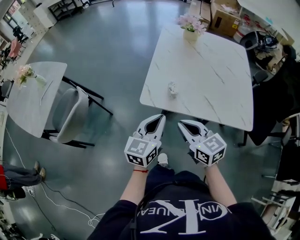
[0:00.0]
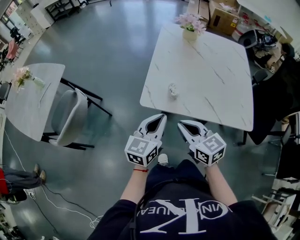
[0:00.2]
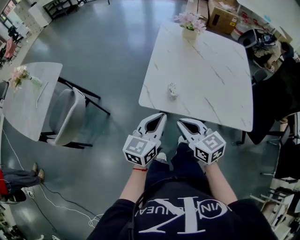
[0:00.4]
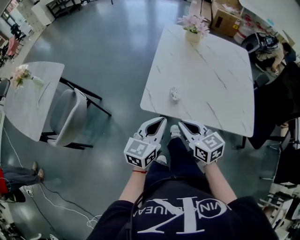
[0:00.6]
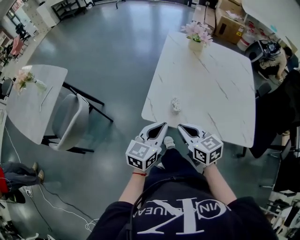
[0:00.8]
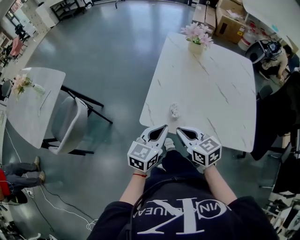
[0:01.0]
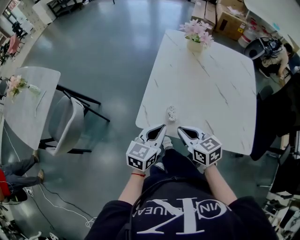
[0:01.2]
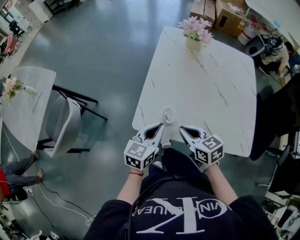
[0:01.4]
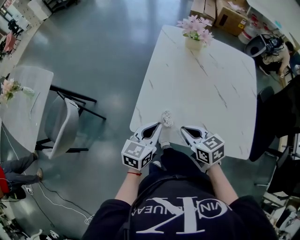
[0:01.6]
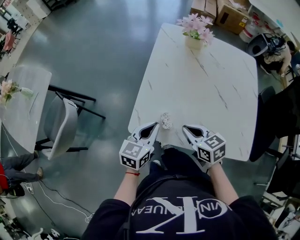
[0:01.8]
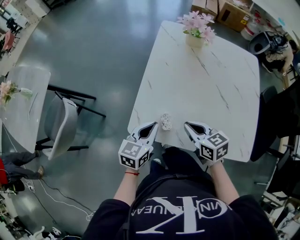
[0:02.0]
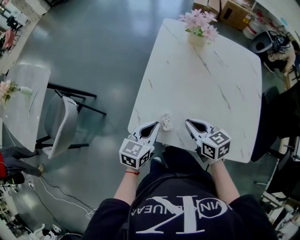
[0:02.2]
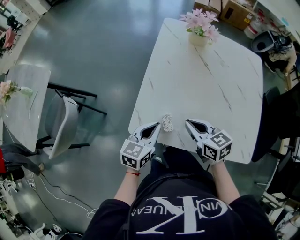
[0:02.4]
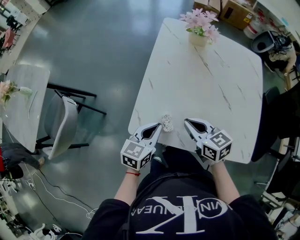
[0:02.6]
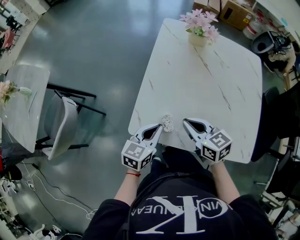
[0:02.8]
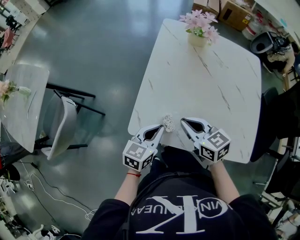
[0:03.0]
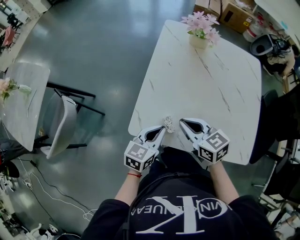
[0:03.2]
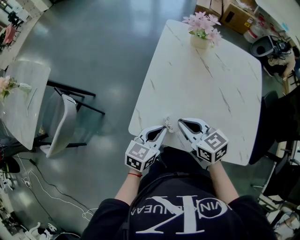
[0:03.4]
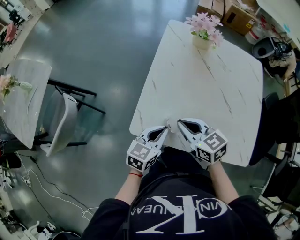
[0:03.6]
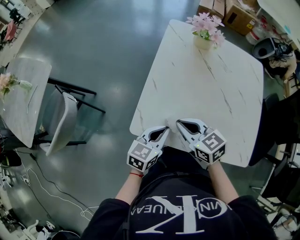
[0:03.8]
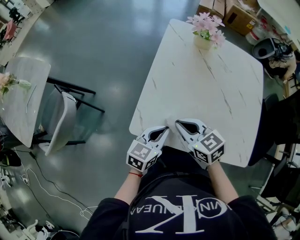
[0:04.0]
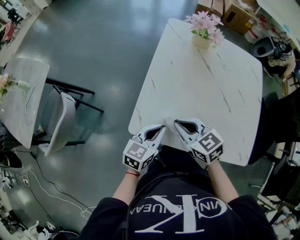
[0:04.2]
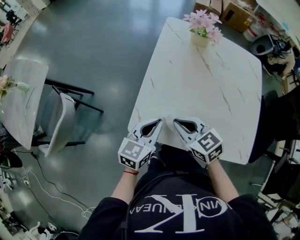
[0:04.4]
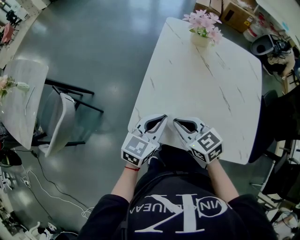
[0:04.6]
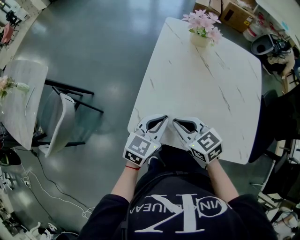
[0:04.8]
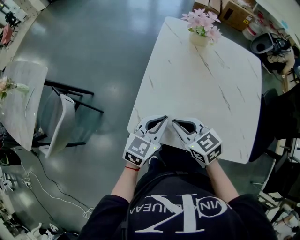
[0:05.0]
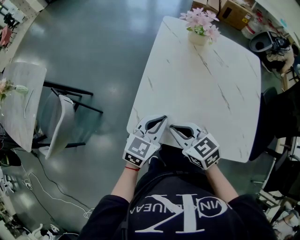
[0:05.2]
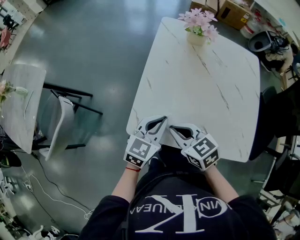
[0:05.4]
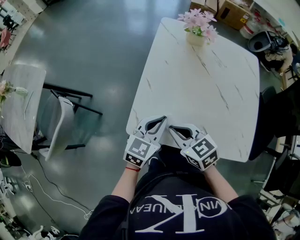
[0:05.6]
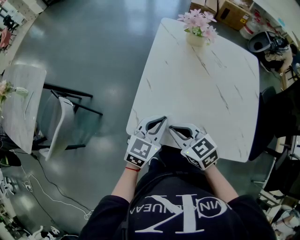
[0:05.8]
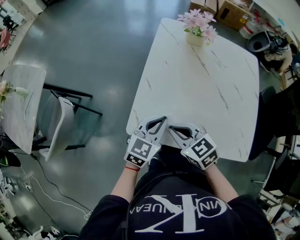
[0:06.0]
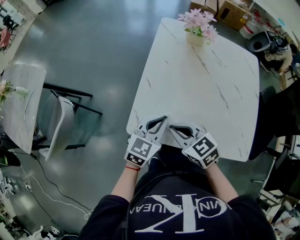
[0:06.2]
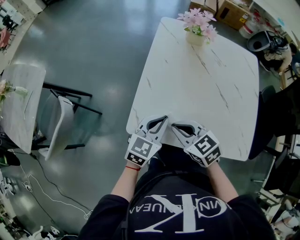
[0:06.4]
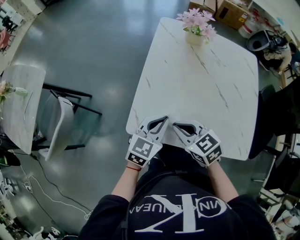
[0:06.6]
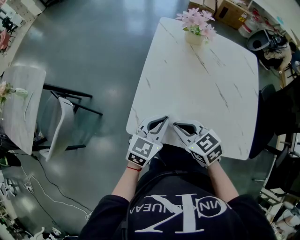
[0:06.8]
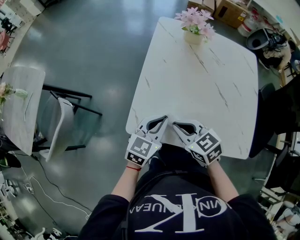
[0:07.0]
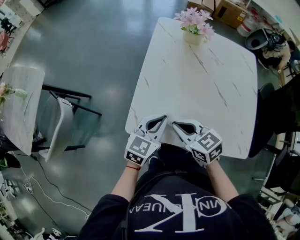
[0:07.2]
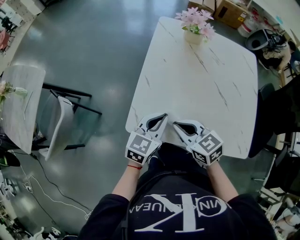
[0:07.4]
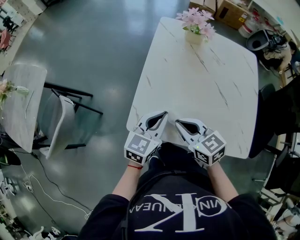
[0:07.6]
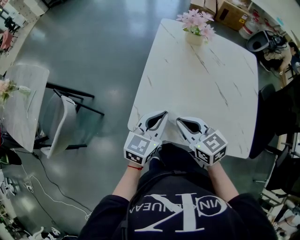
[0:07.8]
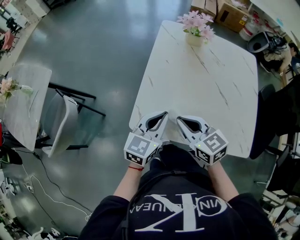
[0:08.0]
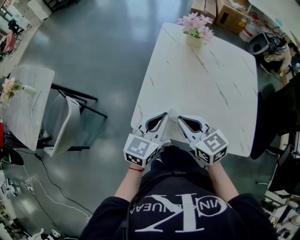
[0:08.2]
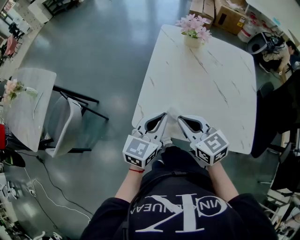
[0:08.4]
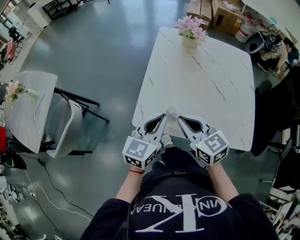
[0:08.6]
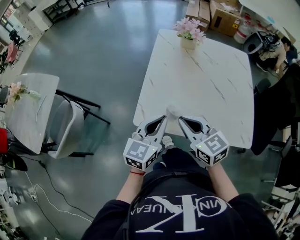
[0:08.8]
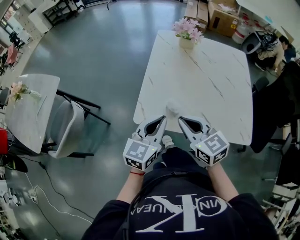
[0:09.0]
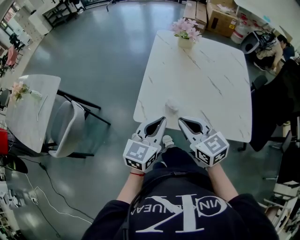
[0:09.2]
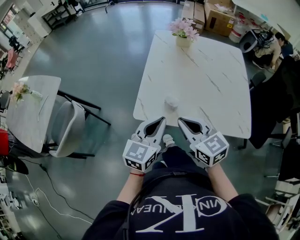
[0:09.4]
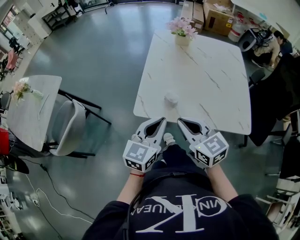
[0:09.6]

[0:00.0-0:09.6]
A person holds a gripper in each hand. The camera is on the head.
0:00.0 to 0:01.6: The left gripper heads forward and downward, covering approximately 15 cm. The right gripper moves forward, downward and to the right, some 20 cm.
0:01.6 to 0:03.2: The right gripper goes roughly 5 cm forward.
0:03.2 to 0:04.8: The left gripper shifts by some 5 cm.
0:04.8 to 0:08.0: The grippers move only a little.
0:08.0 to 0:09.6: The right gripper moves backward and upward, approximately 15 cm. Meanwhile the left gripper travels backward by some 15 cm.

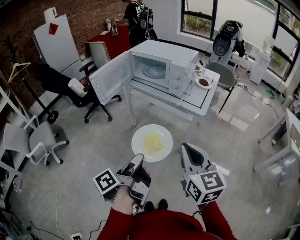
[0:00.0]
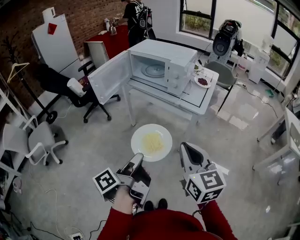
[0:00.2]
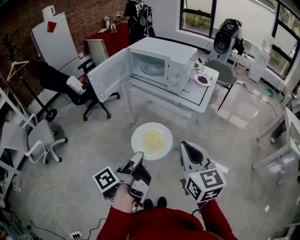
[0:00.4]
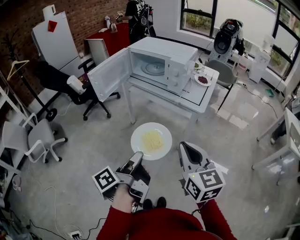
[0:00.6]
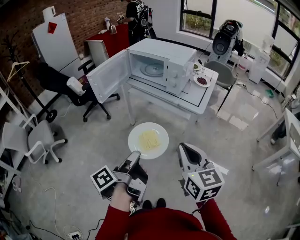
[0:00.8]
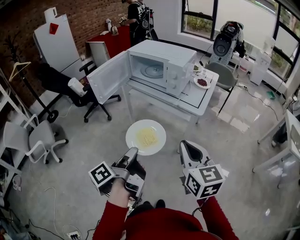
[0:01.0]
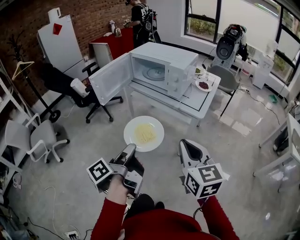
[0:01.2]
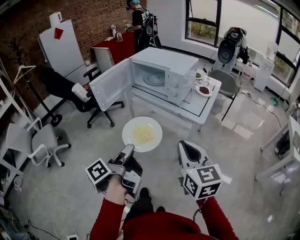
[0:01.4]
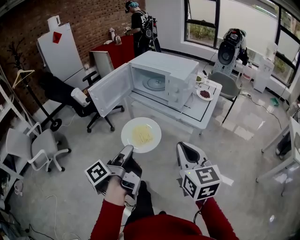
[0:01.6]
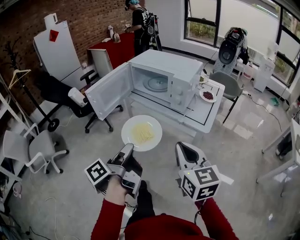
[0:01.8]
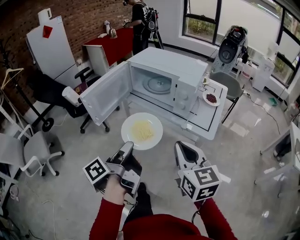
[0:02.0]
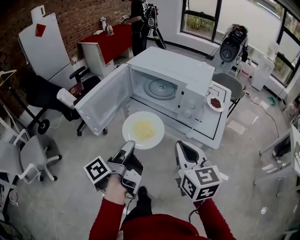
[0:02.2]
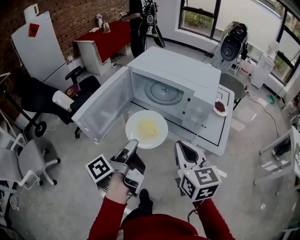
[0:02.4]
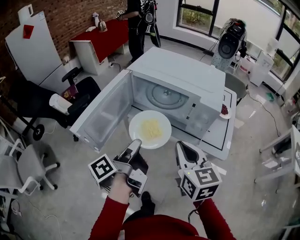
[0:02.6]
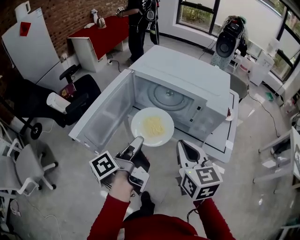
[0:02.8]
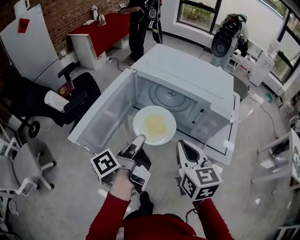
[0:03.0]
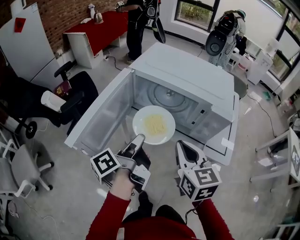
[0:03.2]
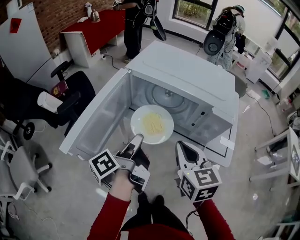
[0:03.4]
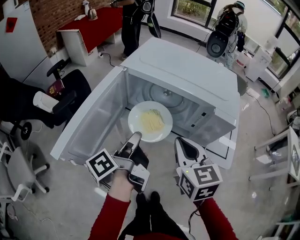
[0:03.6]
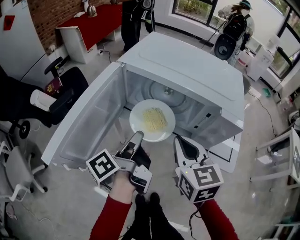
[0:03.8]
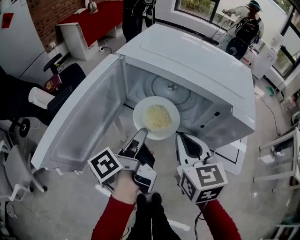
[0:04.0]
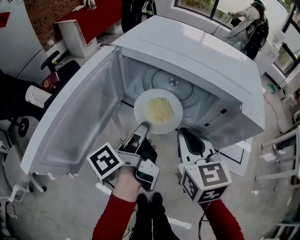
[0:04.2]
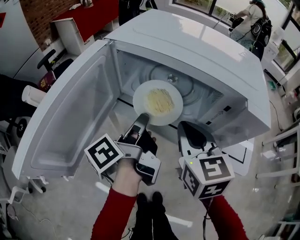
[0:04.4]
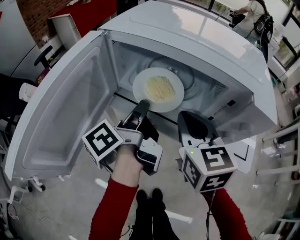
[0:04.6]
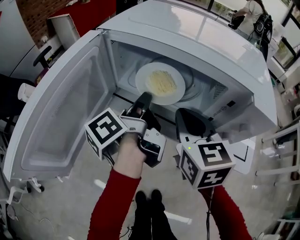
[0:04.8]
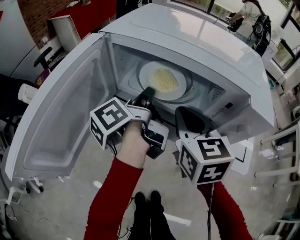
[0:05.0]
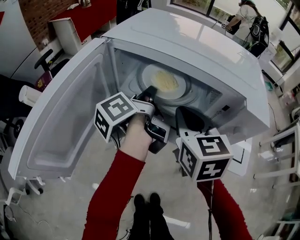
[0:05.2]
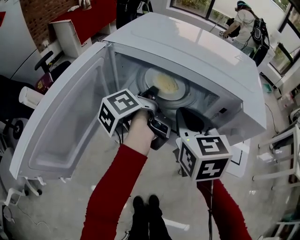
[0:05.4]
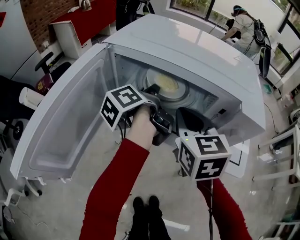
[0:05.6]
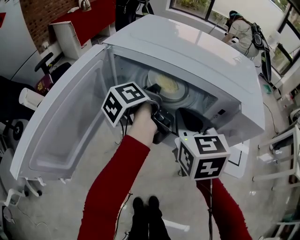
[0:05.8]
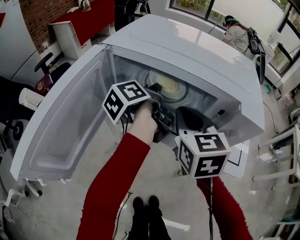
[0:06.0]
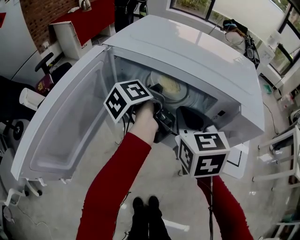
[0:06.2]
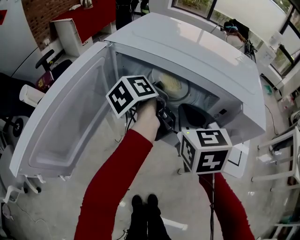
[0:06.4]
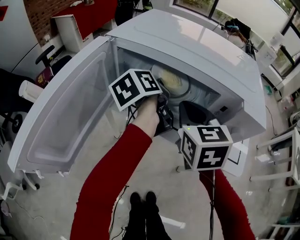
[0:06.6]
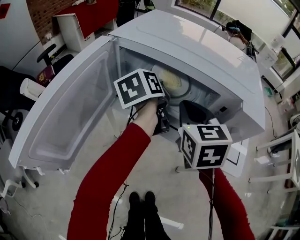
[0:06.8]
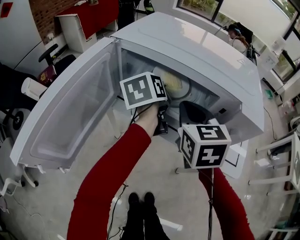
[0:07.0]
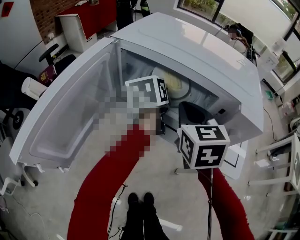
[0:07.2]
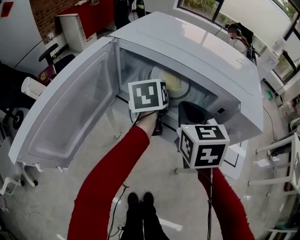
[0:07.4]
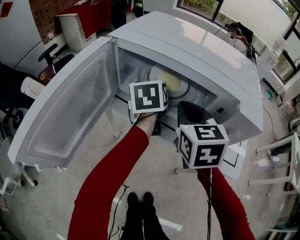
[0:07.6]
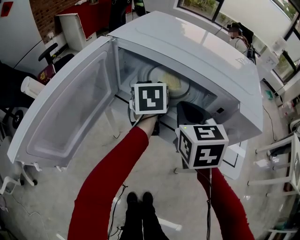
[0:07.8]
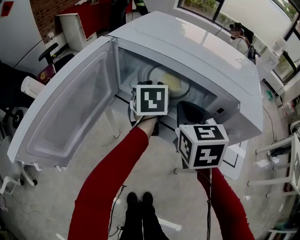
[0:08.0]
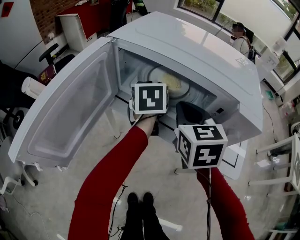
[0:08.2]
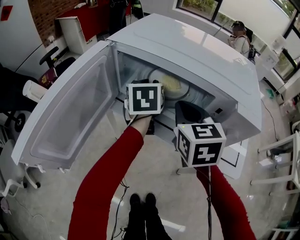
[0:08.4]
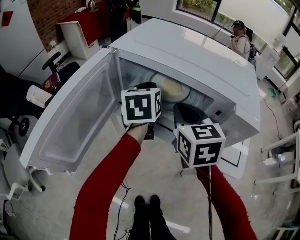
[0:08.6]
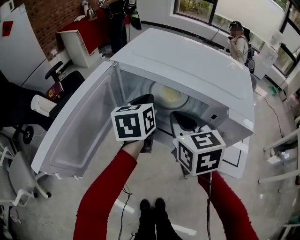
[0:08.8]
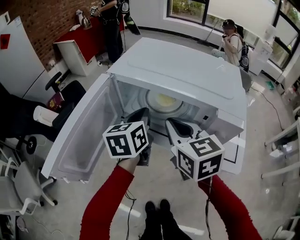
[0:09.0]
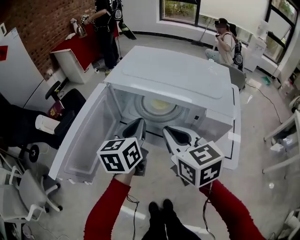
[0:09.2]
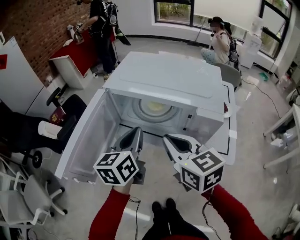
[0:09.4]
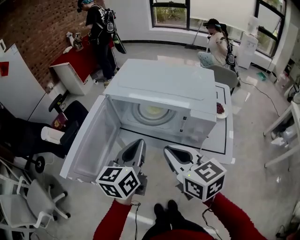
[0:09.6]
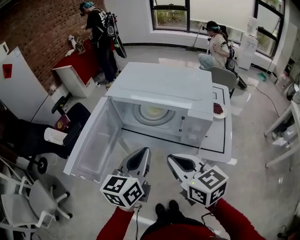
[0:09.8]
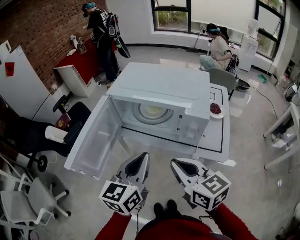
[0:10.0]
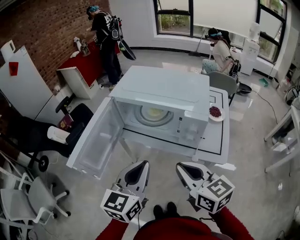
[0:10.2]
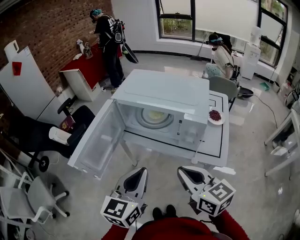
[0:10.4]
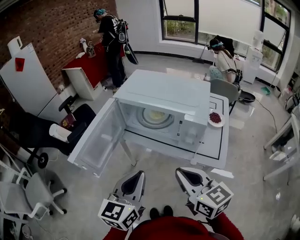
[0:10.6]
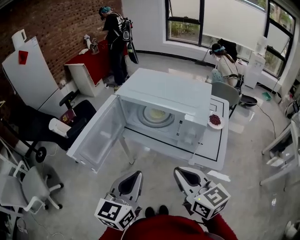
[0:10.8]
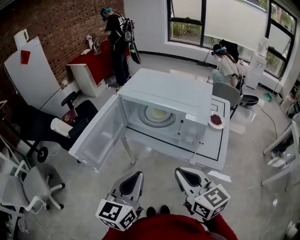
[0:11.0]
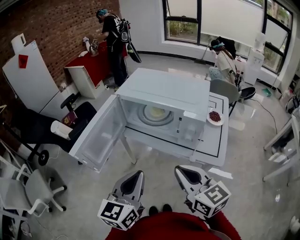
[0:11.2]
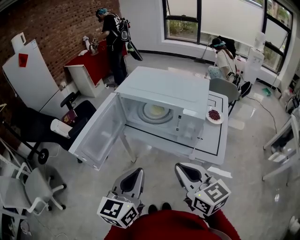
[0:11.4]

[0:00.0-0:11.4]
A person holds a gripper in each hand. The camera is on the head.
0:00.0 to 0:01.4: The left gripper goes some 5 cm forward.
0:01.4 to 0:02.8: The two grippers go some 30 cm forward.
0:02.8 to 0:04.2: The grippers both shift forward and downward by roughly 15 cm.
0:04.2 to 0:05.6: The right gripper shifts roughly 5 cm forward; the left gripper shifts roughly 15 cm forward.
0:05.6 to 0:07.2: The left gripper rolls clockwise, seen from behind, by some 40 degrees.
0:07.2 to 0:08.6: There are only small adjustments of the grippers.
0:08.6 to 0:10.0: The two grippers go approximately 25 cm backward. The left gripper turns by roughly 30 degrees. The right gripper changes its angle by approximately 20 degrees.
0:10.0 to 0:11.4: The right gripper changes place by about 5 cm. The left gripper shifts some 10 cm backward.

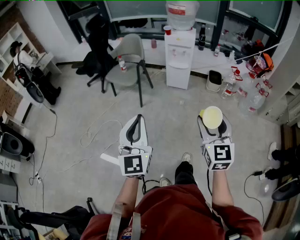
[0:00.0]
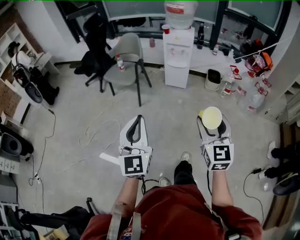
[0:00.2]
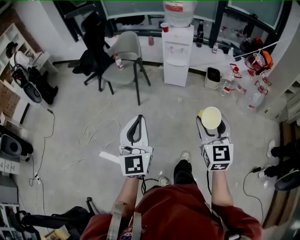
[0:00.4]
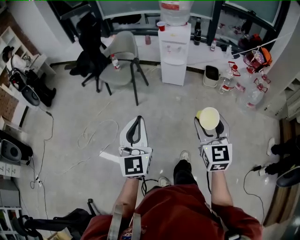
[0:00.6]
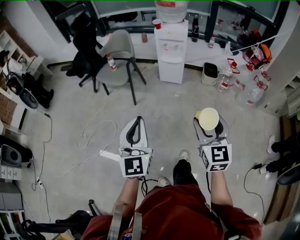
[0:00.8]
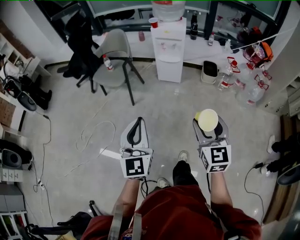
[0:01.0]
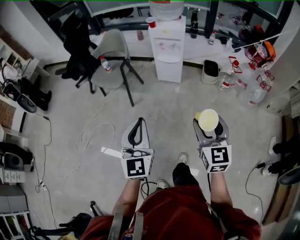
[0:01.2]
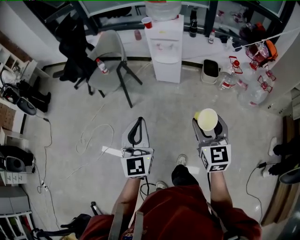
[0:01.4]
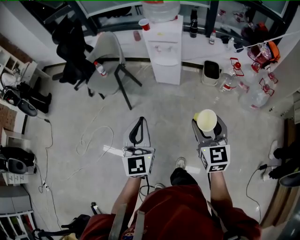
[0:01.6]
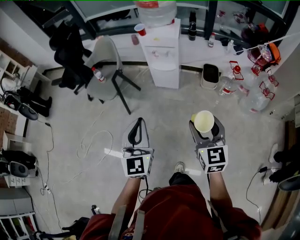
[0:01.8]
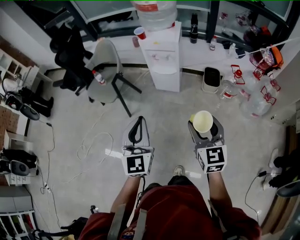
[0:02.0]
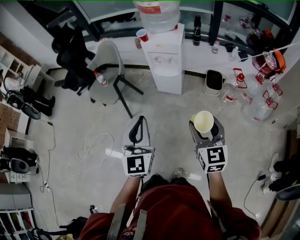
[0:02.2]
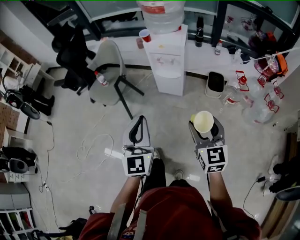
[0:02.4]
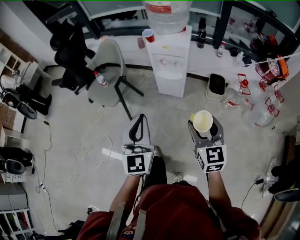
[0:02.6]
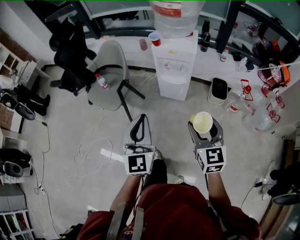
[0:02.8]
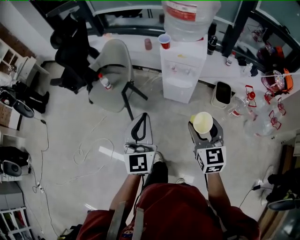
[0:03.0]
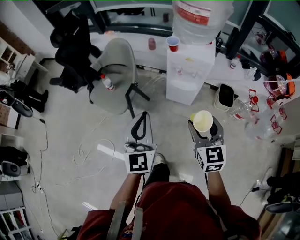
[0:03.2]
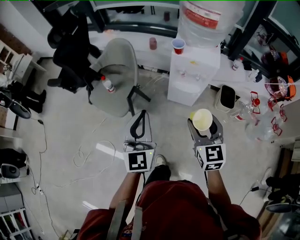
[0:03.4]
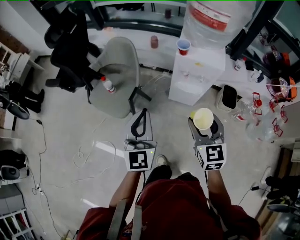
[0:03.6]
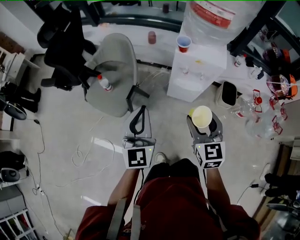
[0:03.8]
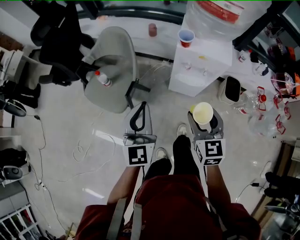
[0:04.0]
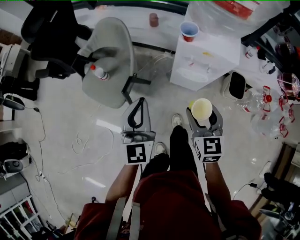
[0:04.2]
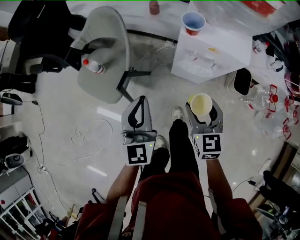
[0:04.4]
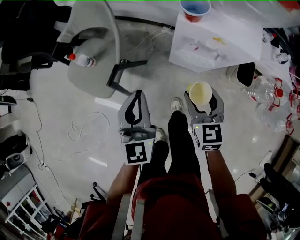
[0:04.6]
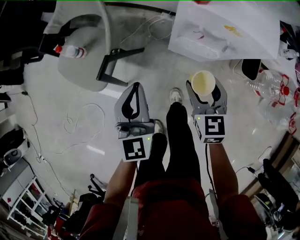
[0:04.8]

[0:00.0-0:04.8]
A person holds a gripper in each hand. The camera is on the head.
0:00.0 to 0:01.6: The two grippers go about 30 cm forward and to the right.
0:01.6 to 0:03.2: The grippers both shift forward by roughly 30 cm.
0:03.2 to 0:04.8: Both grippers move downward and forward, roughly 35 cm.
